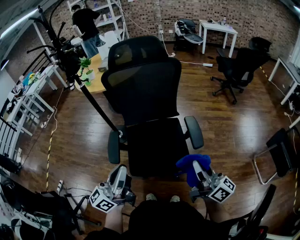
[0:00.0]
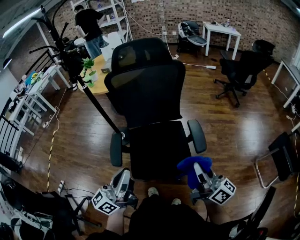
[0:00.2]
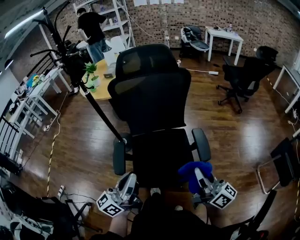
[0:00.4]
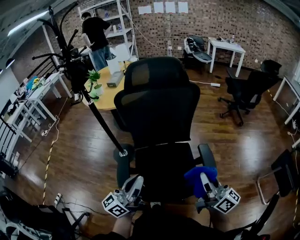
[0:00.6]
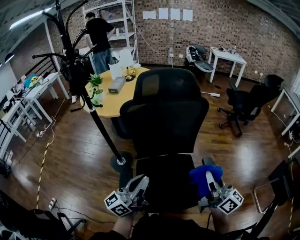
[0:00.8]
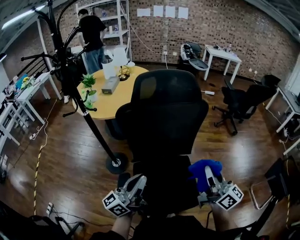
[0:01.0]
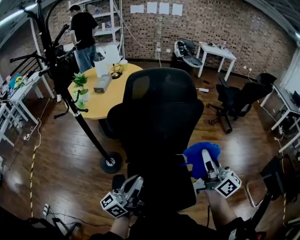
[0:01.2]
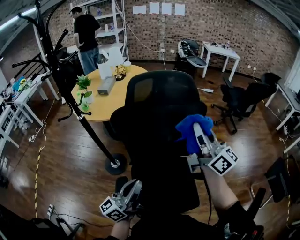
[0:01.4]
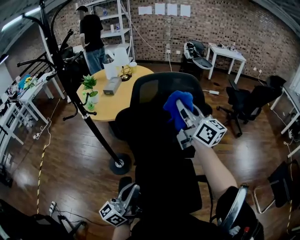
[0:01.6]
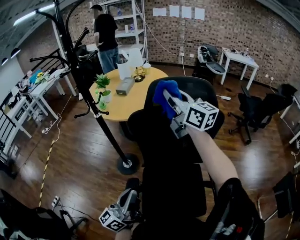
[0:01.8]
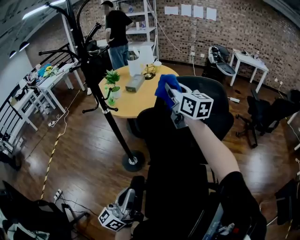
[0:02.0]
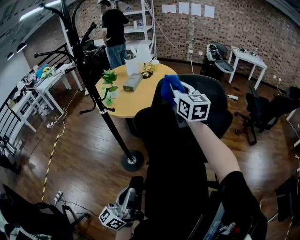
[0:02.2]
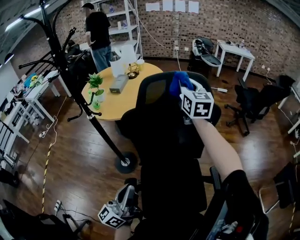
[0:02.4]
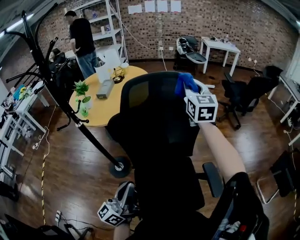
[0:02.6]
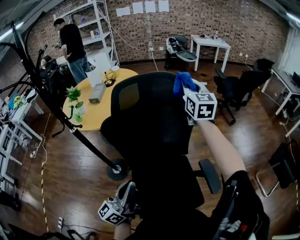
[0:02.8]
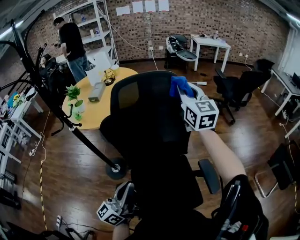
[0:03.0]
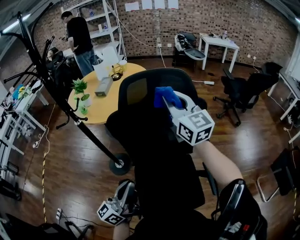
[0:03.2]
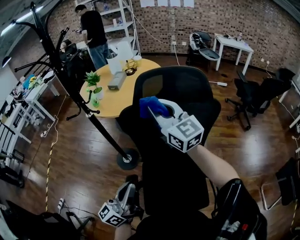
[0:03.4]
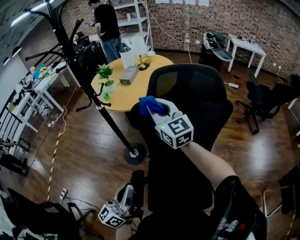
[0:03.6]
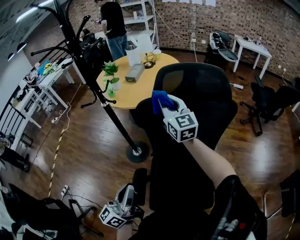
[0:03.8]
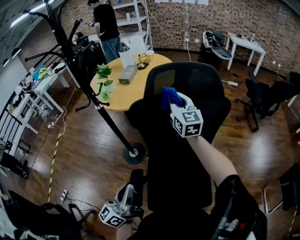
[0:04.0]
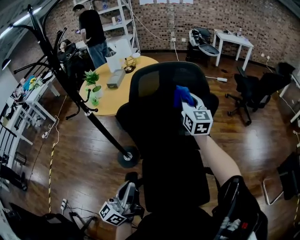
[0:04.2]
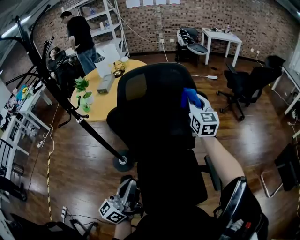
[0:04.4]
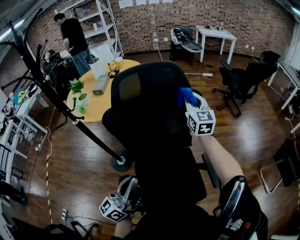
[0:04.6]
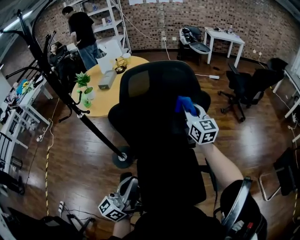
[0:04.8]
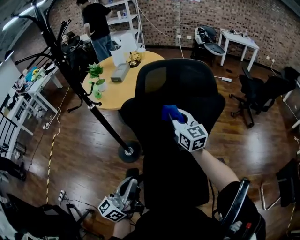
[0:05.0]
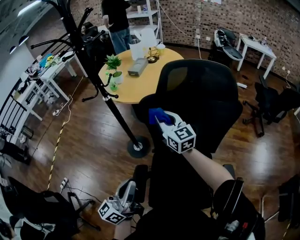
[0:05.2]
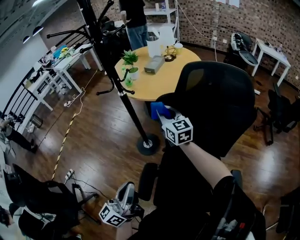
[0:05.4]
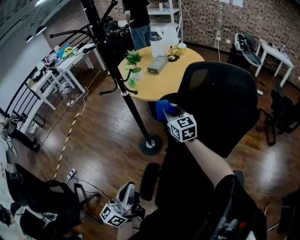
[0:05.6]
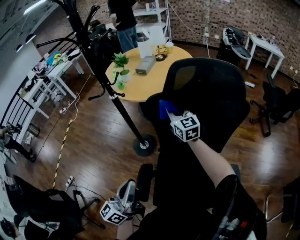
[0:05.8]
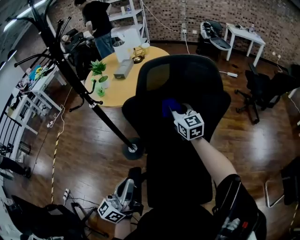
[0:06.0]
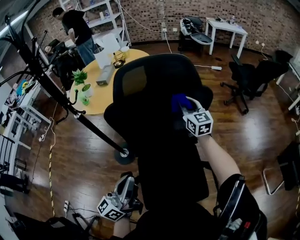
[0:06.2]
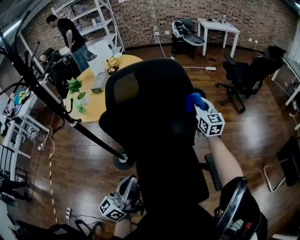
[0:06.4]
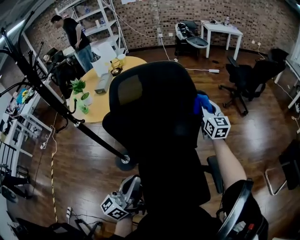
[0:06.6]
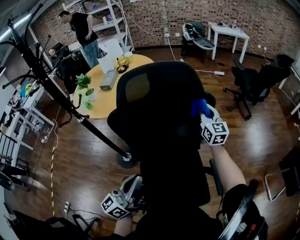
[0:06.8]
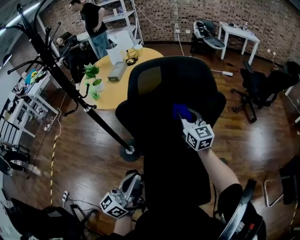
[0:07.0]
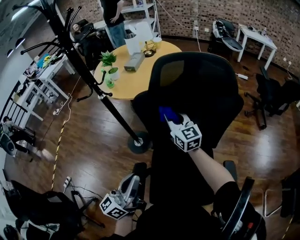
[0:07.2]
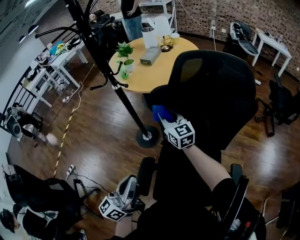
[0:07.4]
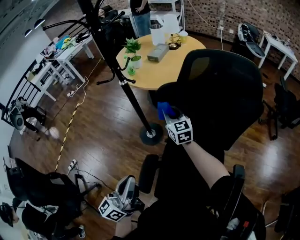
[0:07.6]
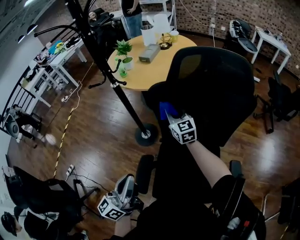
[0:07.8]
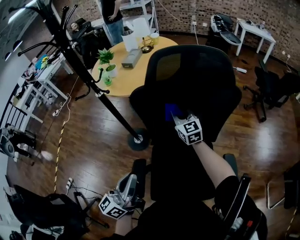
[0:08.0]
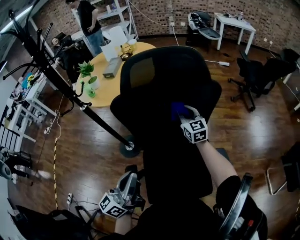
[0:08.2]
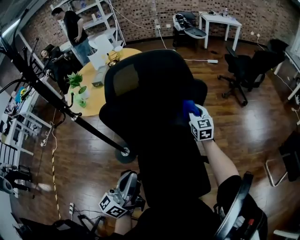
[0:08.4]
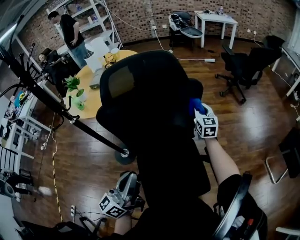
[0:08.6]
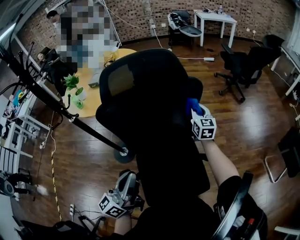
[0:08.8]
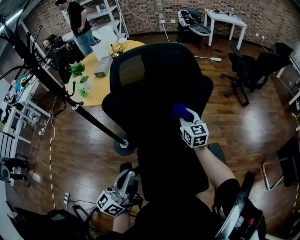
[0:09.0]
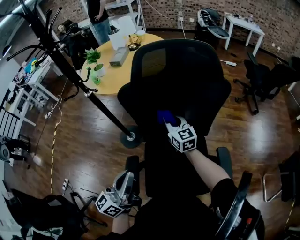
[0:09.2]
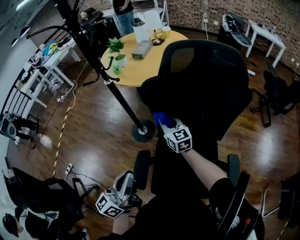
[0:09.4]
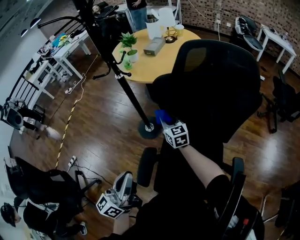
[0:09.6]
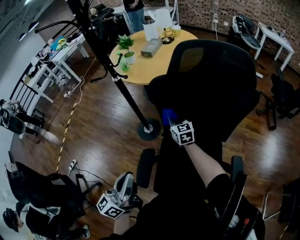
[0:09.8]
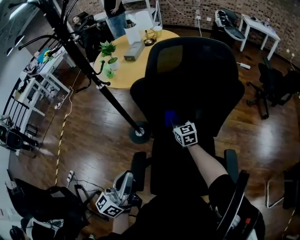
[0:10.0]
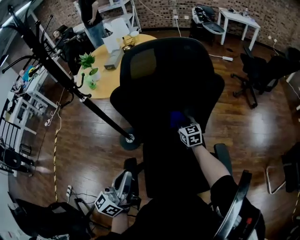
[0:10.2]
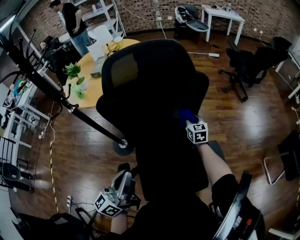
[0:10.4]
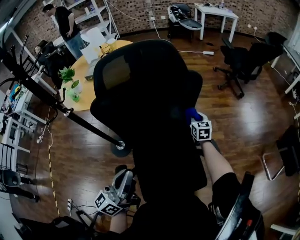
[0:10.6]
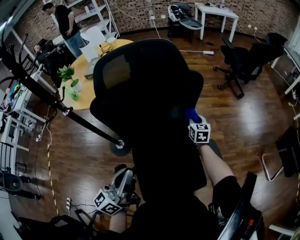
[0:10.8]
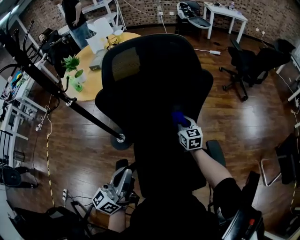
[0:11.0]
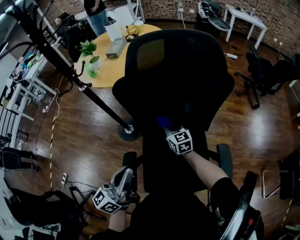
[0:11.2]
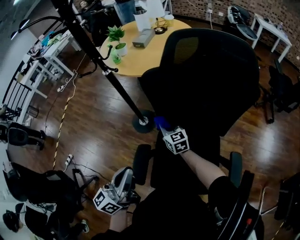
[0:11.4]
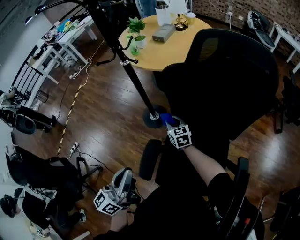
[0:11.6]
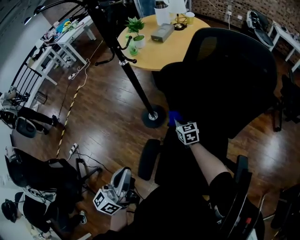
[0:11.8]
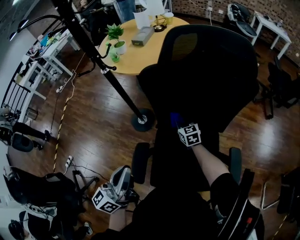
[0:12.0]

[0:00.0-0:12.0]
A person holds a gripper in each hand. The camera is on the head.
0:00.0 to 0:01.6: The left gripper is displaced forward and to the left by roughly 25 cm. The right gripper is displaced forward and to the left by about 50 cm.
0:01.6 to 0:03.0: The right gripper swivels some 40 degrees.
0:03.0 to 0:04.4: The left gripper travels to the left and back again, approximately 10 cm each way, while the right gripper is displaced downward by some 10 cm, and travels to the left and back again, some 25 cm each way.
0:04.4 to 0:06.0: The right gripper turns by about 30 degrees.
0:06.0 to 0:07.6: The right gripper shifts by about 20 cm. Meanwhile the left gripper shifts by roughly 10 cm.
0:07.6 to 0:09.0: The right gripper changes place by approximately 30 cm, and swivels roughly 30 degrees, while the left gripper shifts by some 15 cm, and changes its angle by roughly 20 degrees.
0:09.0 to 0:10.4: The right gripper goes about 10 cm downward.
0:10.4 to 0:12.0: The right gripper shifts by approximately 25 cm, and rotates about 30 degrees, while the left gripper moves about 10 cm.

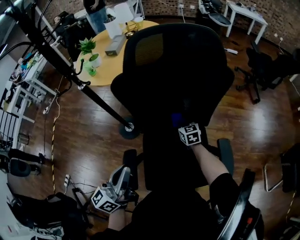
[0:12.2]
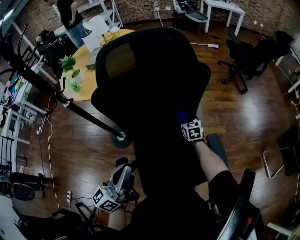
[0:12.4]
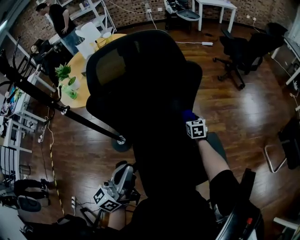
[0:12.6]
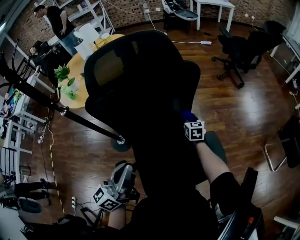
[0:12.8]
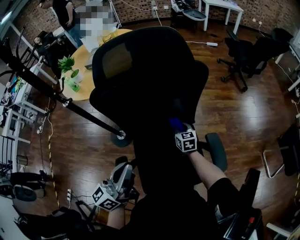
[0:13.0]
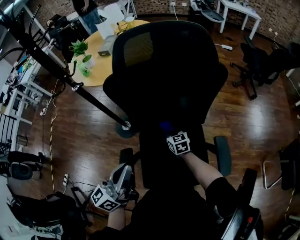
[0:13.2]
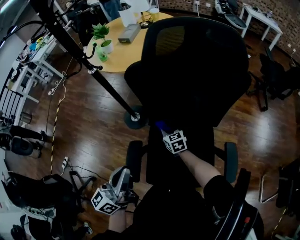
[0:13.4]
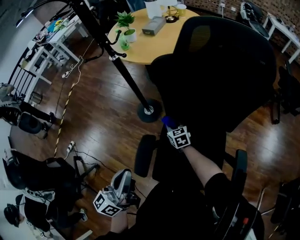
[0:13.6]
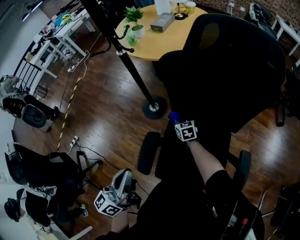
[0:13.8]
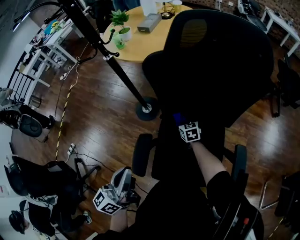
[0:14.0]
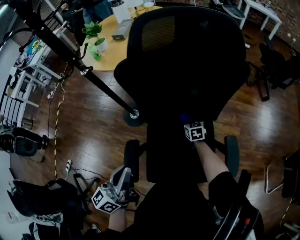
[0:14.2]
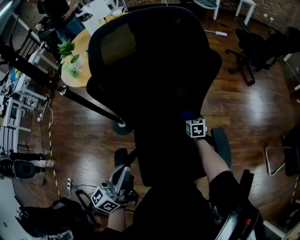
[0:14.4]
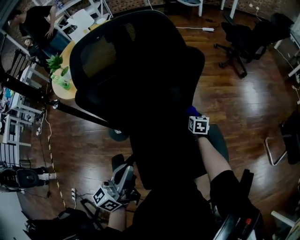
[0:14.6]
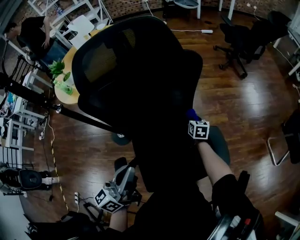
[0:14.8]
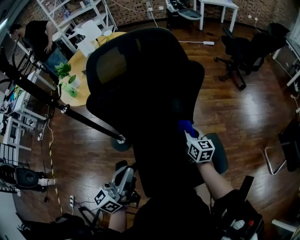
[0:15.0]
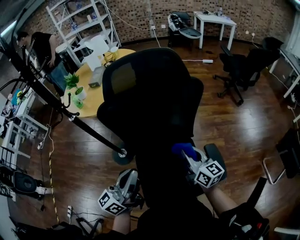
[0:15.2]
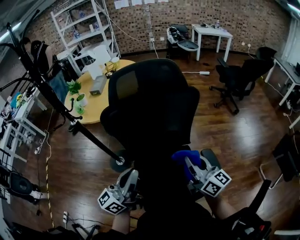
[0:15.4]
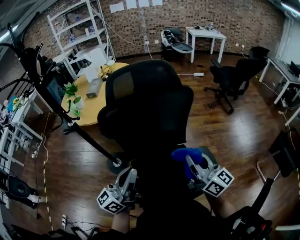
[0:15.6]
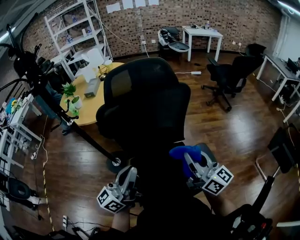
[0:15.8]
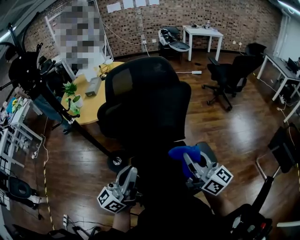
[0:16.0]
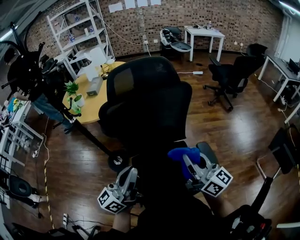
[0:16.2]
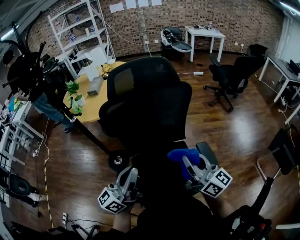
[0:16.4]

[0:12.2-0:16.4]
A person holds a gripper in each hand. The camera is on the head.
0:12.2 to 0:13.6: The left gripper shifts by some 10 cm. Meanwhile the right gripper ends up about 20 cm from where it was, and changes its angle by about 20 degrees.
0:13.6 to 0:15.0: The left gripper shifts by approximately 15 cm, and rotates about 30 degrees. The right gripper changes place by some 35 cm, and swivels some 50 degrees.
0:15.0 to 0:16.4: The right gripper is displaced upward and backward by approximately 35 cm, and tilts its fingers about 30 degrees upward. The left gripper goes some 10 cm upward and backward.

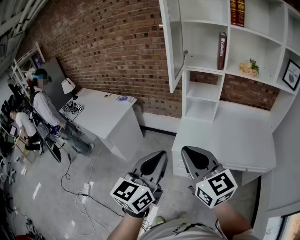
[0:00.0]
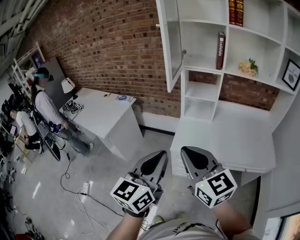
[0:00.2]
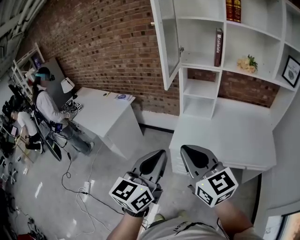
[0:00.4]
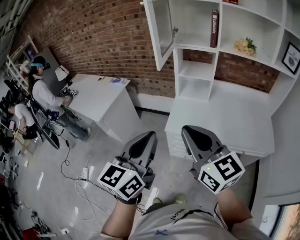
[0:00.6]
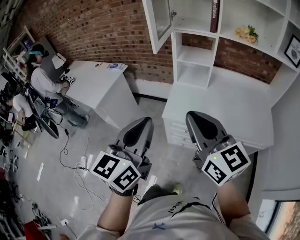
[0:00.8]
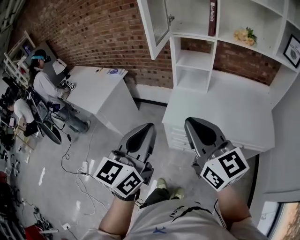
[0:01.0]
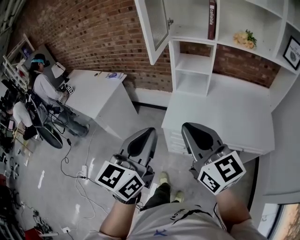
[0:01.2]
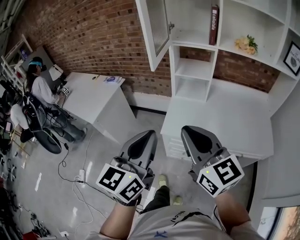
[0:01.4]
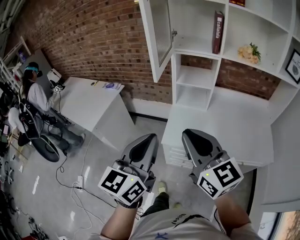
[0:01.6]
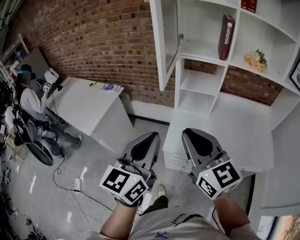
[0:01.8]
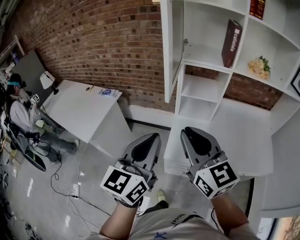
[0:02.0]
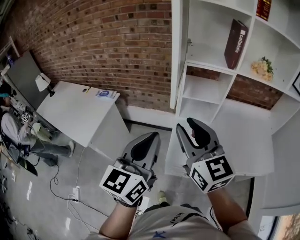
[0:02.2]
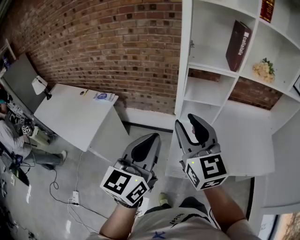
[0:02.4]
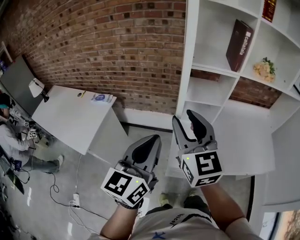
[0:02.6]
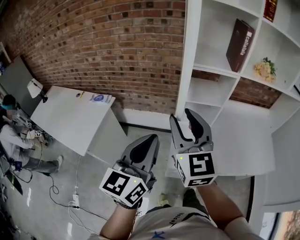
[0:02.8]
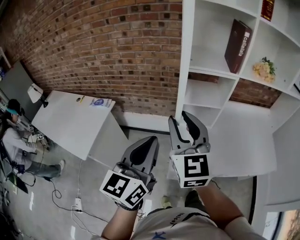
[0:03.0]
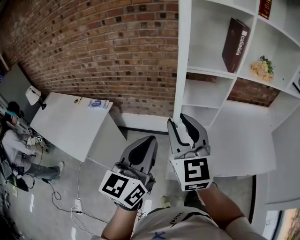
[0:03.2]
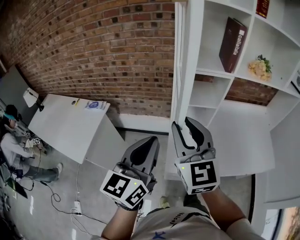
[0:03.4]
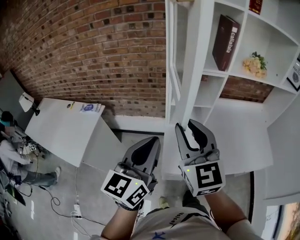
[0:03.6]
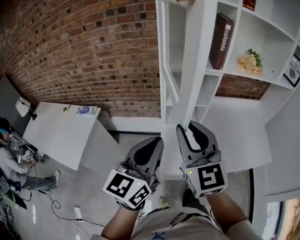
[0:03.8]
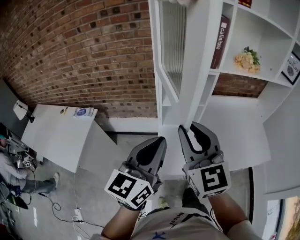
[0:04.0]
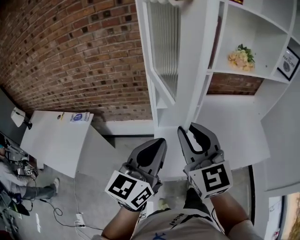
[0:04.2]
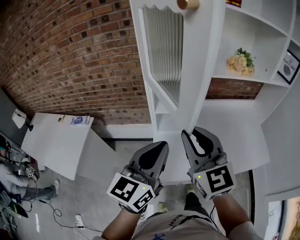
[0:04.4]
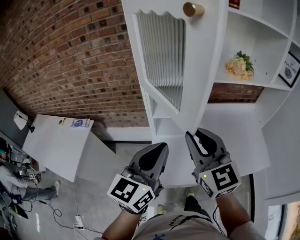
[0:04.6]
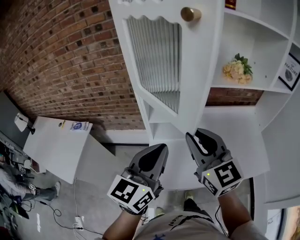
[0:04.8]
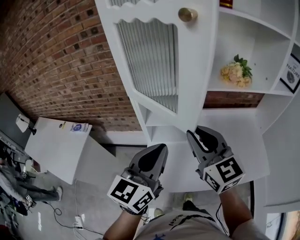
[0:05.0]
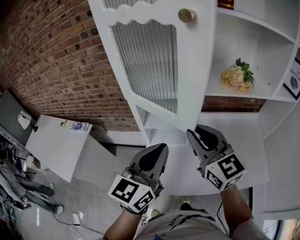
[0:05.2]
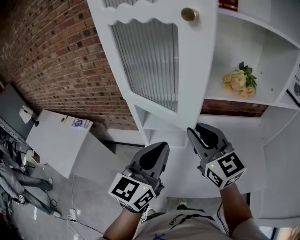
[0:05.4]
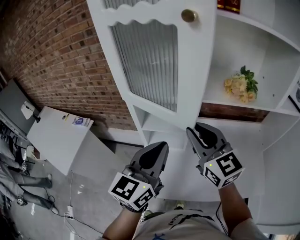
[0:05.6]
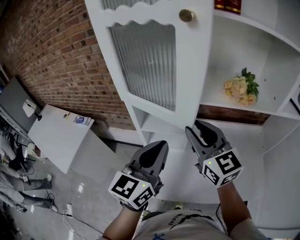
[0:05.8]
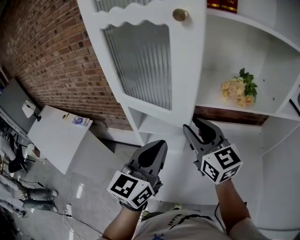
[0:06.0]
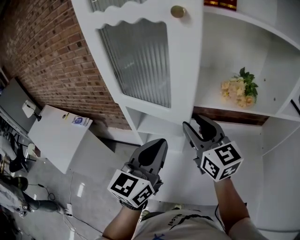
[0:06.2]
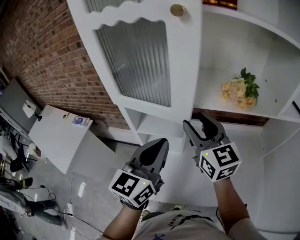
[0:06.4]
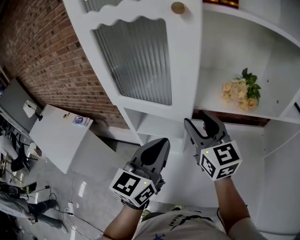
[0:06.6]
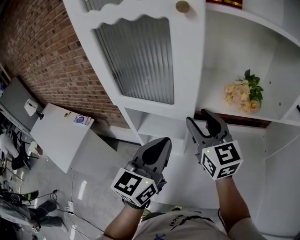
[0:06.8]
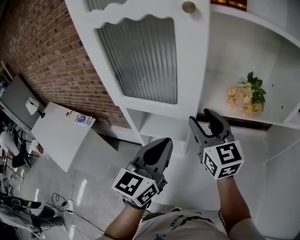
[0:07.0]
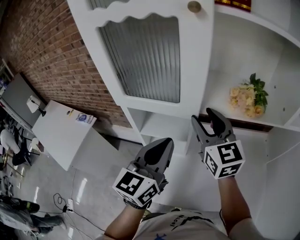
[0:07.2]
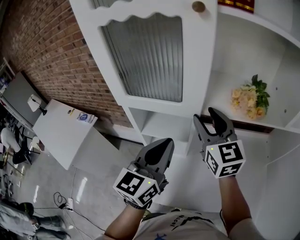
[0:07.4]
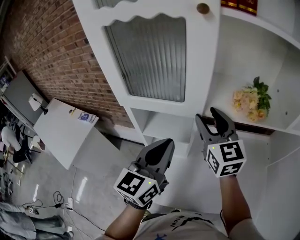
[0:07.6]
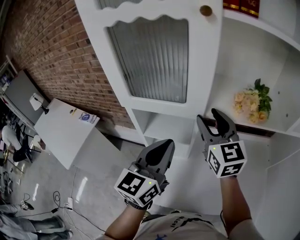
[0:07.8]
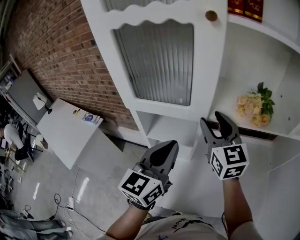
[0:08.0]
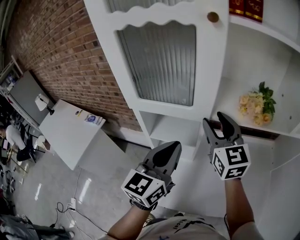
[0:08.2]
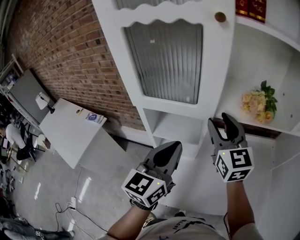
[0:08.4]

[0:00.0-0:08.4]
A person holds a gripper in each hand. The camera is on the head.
0:00.0 to 0:01.4: The left gripper moves approximately 5 cm. The right gripper heads to the right, covering approximately 5 cm.
0:01.4 to 0:02.8: The two grippers go about 30 cm forward and to the left. The right gripper turns by about 30 degrees, and opens up.
0:02.8 to 0:04.2: The left gripper travels to the right and forward by about 15 cm. Meanwhile the right gripper shifts approximately 10 cm to the right.
0:04.2 to 0:05.6: Both grippers travel together to the right and forward, some 20 cm.
0:05.6 to 0:07.0: The left gripper shifts some 5 cm forward. The right gripper travels forward and to the right by roughly 10 cm, and opens its fingers.
0:07.0 to 0:08.4: The grippers make only small movements.
